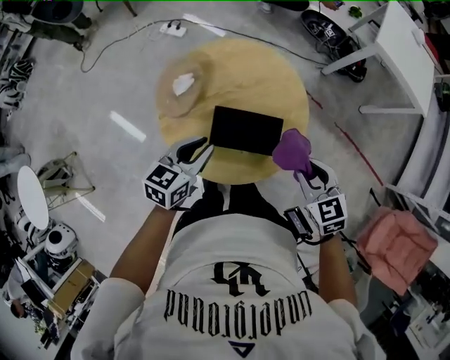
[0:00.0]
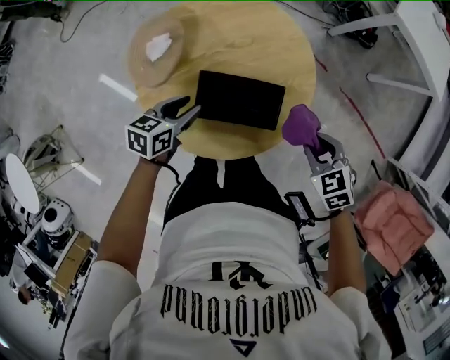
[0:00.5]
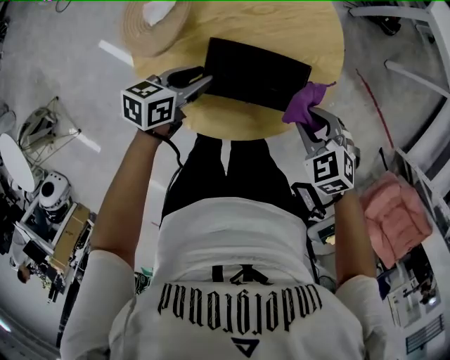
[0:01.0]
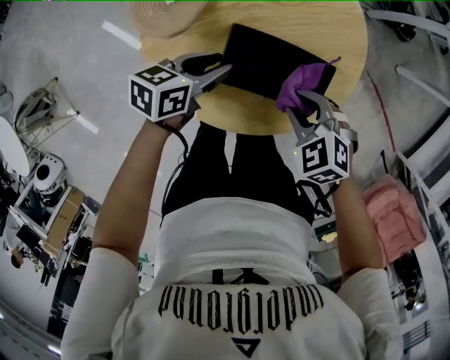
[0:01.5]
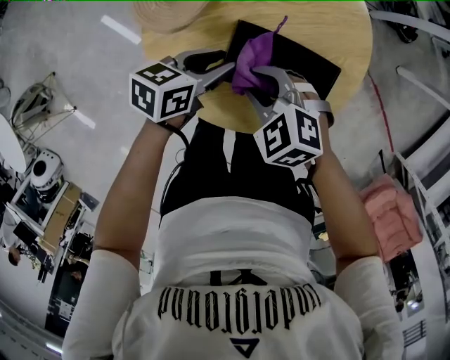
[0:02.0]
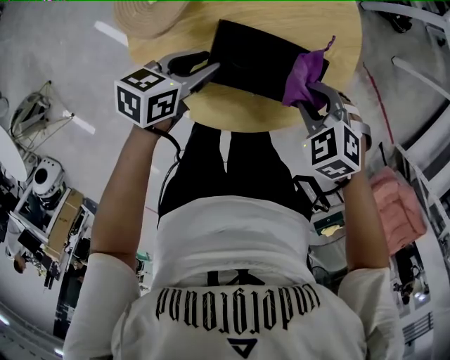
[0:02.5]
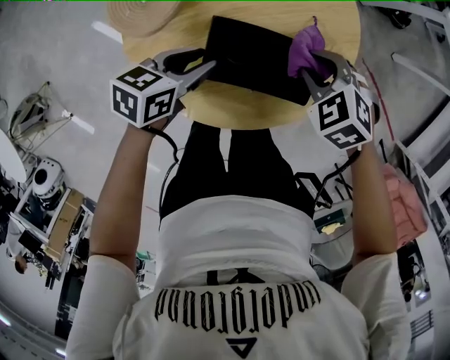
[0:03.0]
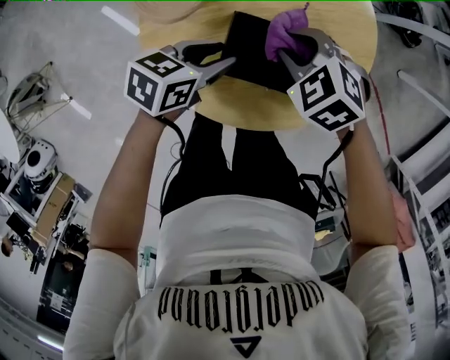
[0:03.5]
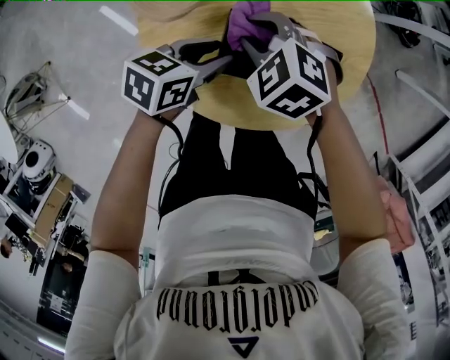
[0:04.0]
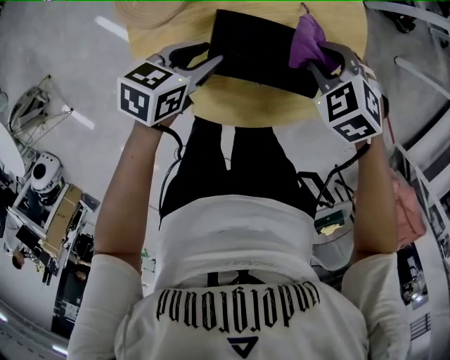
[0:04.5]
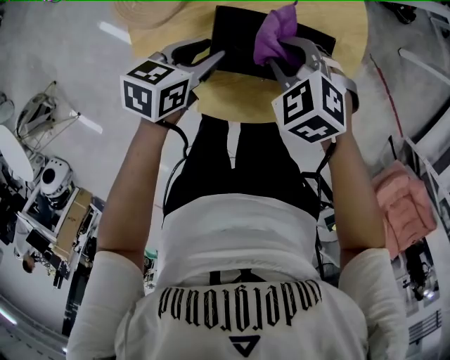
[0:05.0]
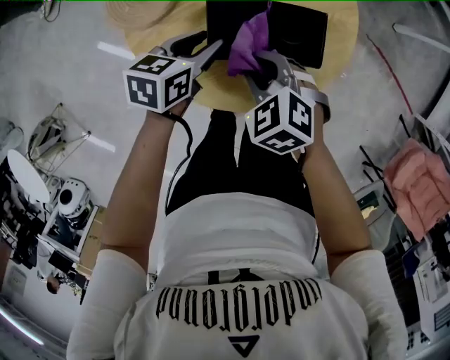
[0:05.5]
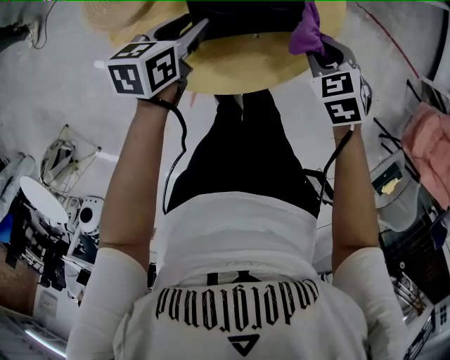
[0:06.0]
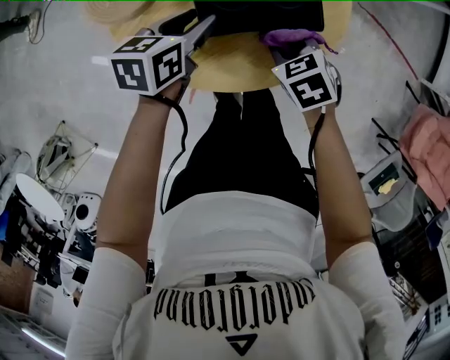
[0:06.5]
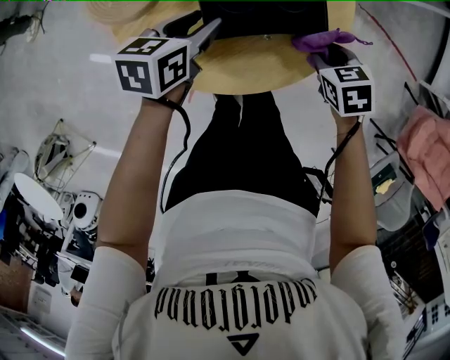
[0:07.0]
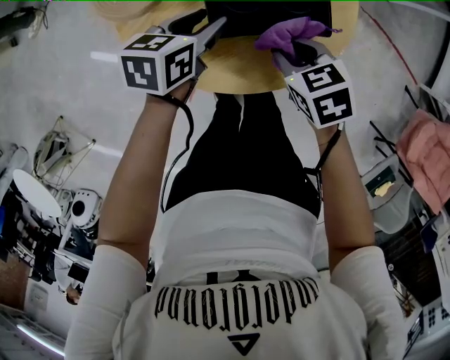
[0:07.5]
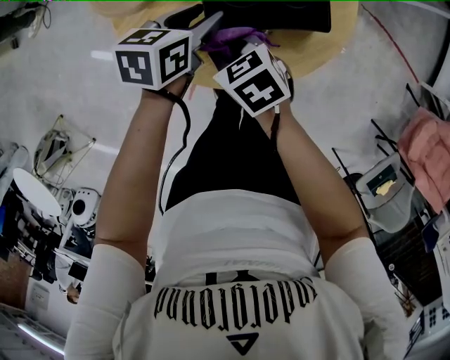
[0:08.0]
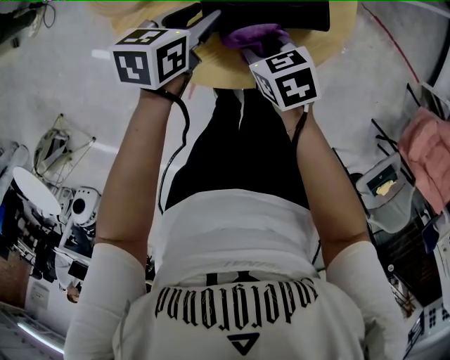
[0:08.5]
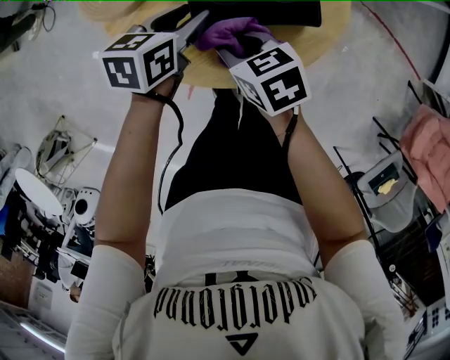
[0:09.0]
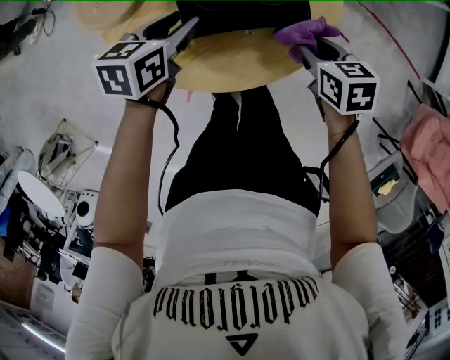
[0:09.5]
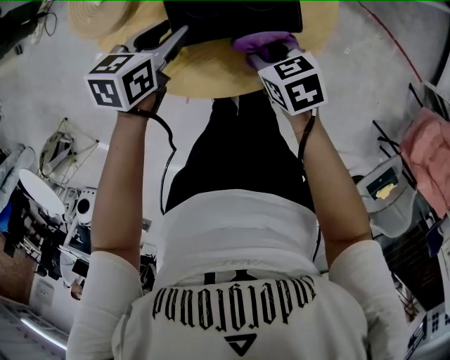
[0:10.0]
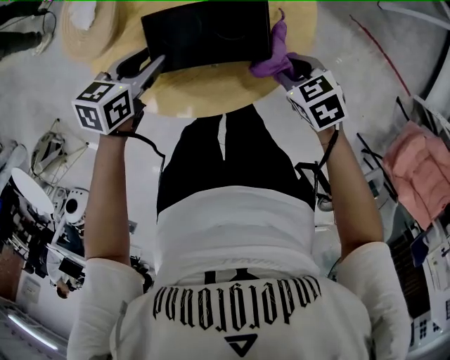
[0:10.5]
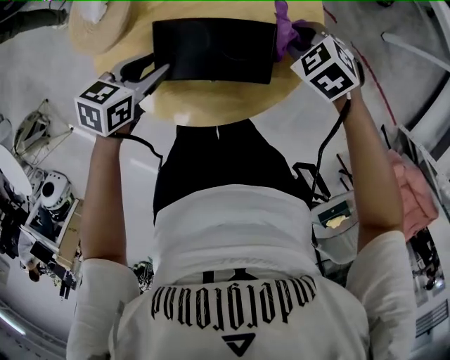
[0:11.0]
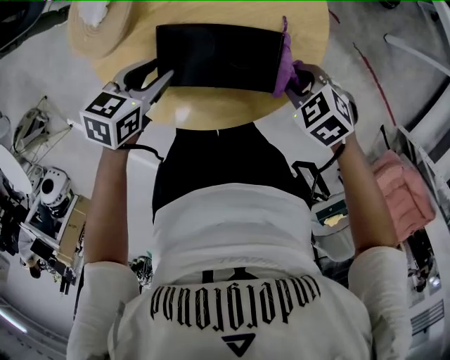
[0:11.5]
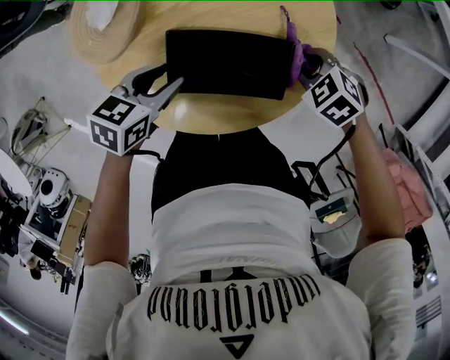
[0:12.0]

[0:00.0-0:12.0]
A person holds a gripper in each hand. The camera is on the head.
0:00.0 to 0:02.0: The left gripper heads downward, covering some 20 cm, and changes its angle by roughly 20 degrees. The right gripper moves some 30 cm, and swivels roughly 40 degrees.
0:04.0 to 0:06.0: The right gripper moves approximately 25 cm, and rolls clockwise, seen from behind, by roughly 40 degrees.
0:06.0 to 0:08.0: The right gripper swings left and right, approximately 25 cm each way, with 2 reversals, and rotates roughly 30 degrees.
0:08.0 to 0:10.0: The right gripper is displaced to the right by roughly 15 cm.
0:10.0 to 0:12.0: The right gripper ends up about 15 cm from where it was, and rotates around the line of its fingers by roughly 40 degrees, counterclockwise from behind.

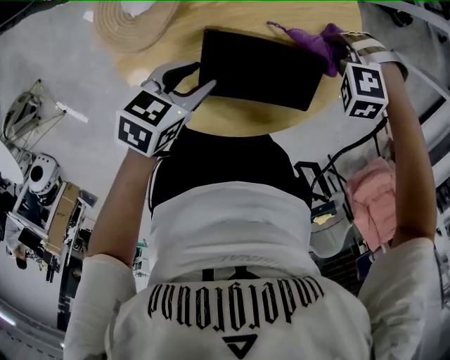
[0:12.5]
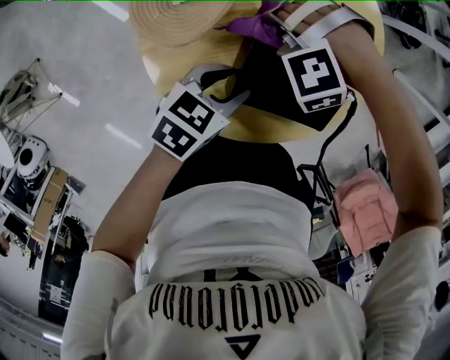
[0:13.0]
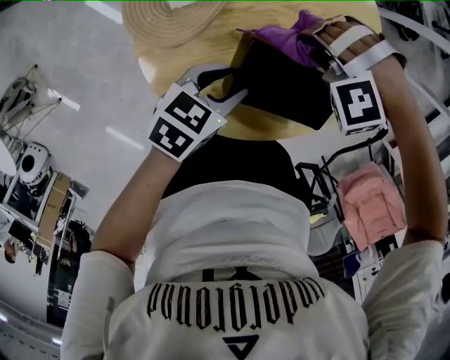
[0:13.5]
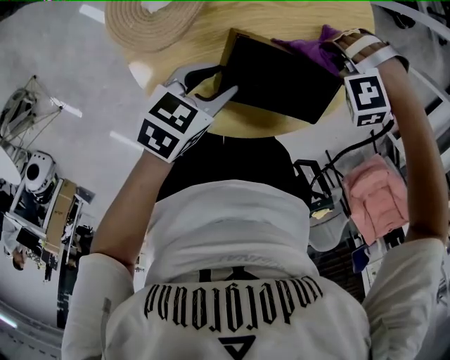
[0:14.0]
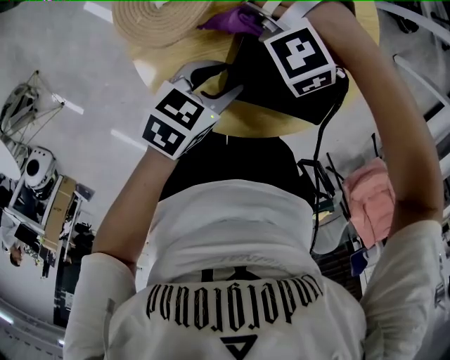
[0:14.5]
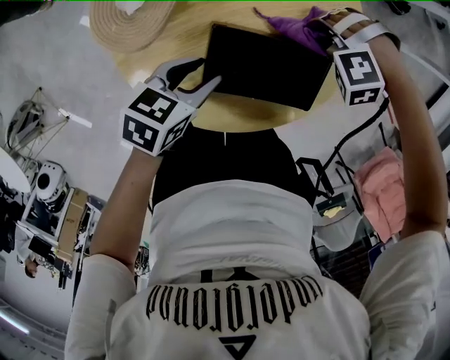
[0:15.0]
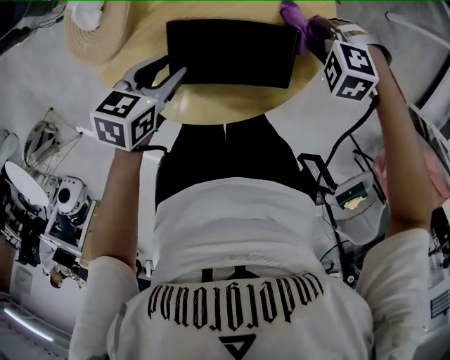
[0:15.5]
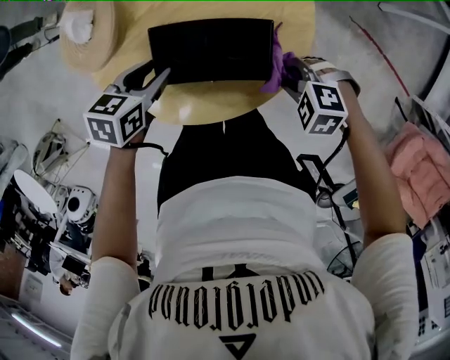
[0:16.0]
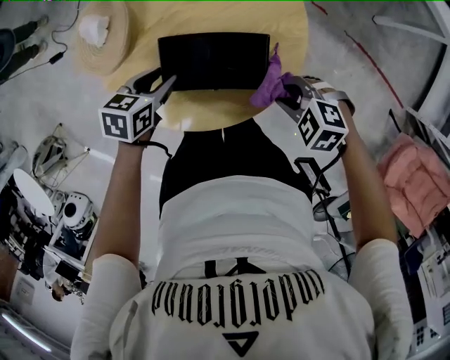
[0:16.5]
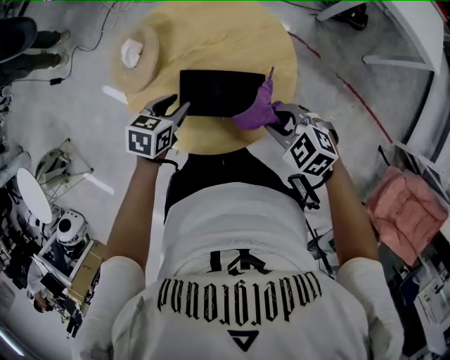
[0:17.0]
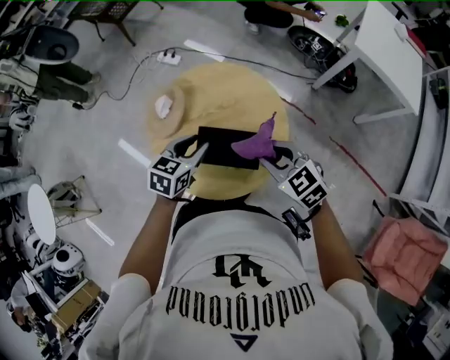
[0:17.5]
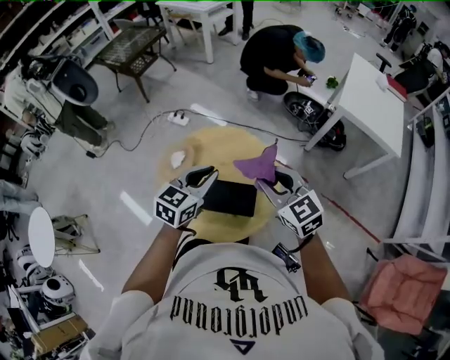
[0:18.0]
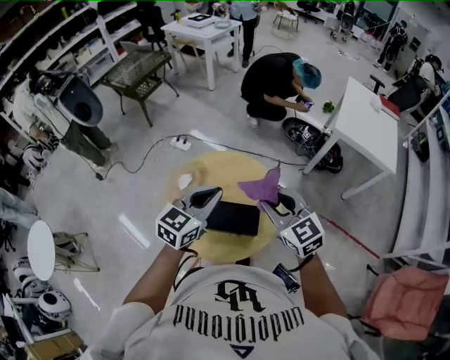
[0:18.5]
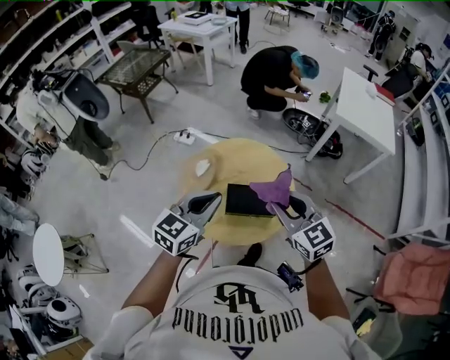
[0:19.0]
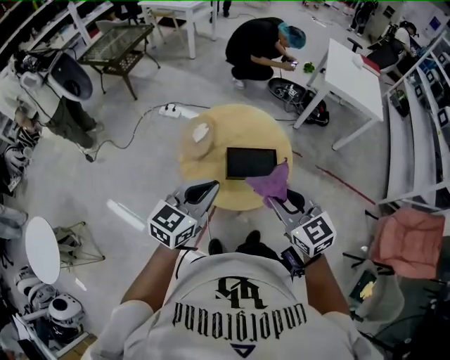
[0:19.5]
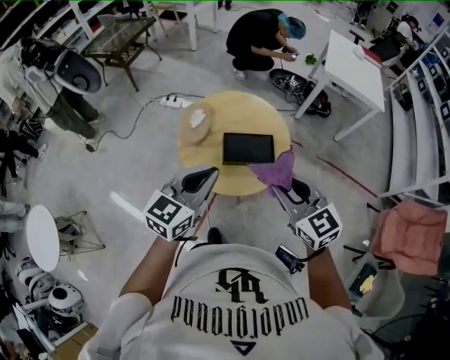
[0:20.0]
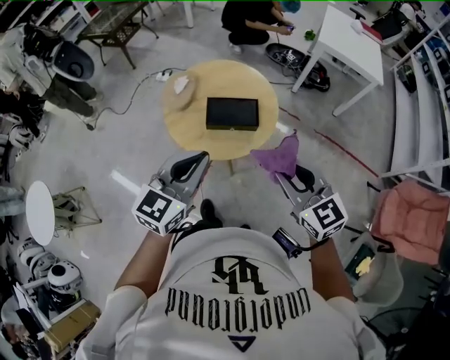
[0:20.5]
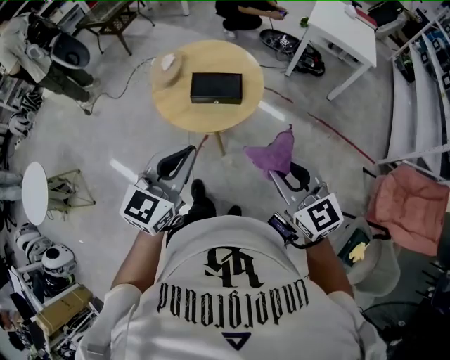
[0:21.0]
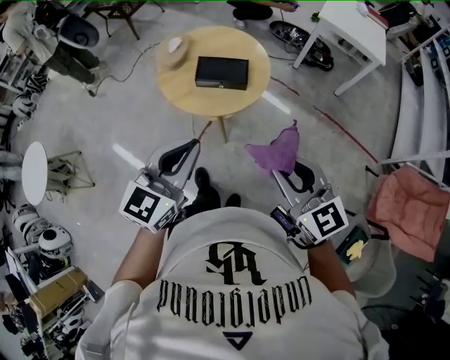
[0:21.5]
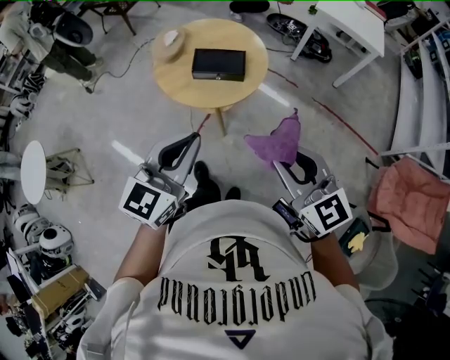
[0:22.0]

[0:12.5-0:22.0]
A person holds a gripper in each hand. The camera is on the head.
0:12.5 to 0:14.5: The right gripper moves approximately 20 cm, and changes its angle by about 30 degrees.
0:14.5 to 0:16.5: The left gripper moves roughly 5 cm, while the right gripper shifts by roughly 30 cm, and rotates around the line of its fingers by roughly 70 degrees, clockwise from behind.
0:16.5 to 0:18.0: The two grippers go about 35 cm upward. The right gripper points its fingers about 40 degrees further upward; the left gripper points its fingers roughly 30 degrees further upward, and closes.
0:18.0 to 0:20.0: The left gripper travels backward and to the left by roughly 30 cm; the right gripper is displaced backward by about 30 cm.
0:20.0 to 0:22.0: The two grippers go some 30 cm backward and to the right.

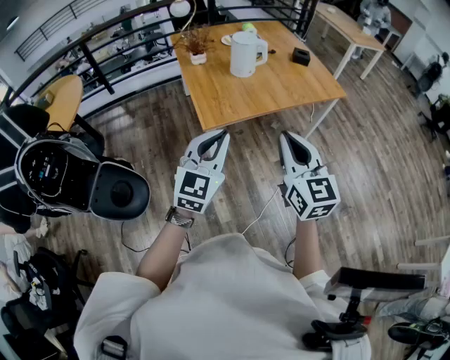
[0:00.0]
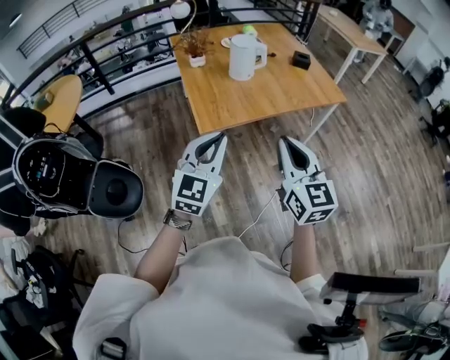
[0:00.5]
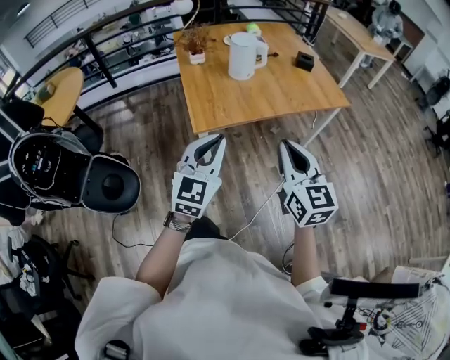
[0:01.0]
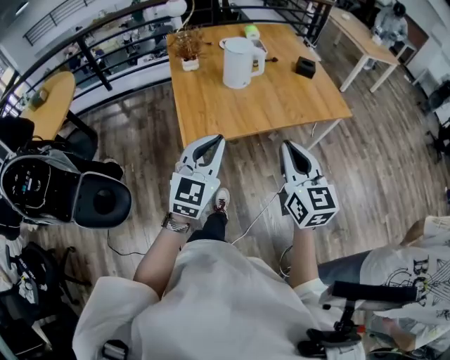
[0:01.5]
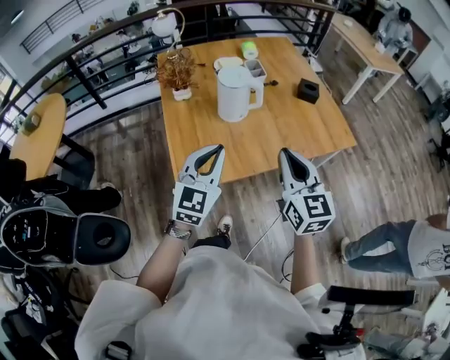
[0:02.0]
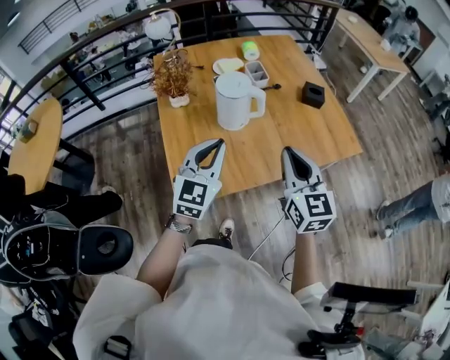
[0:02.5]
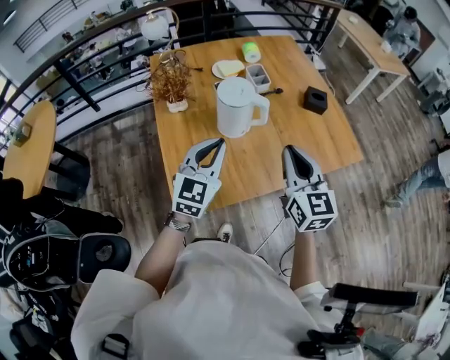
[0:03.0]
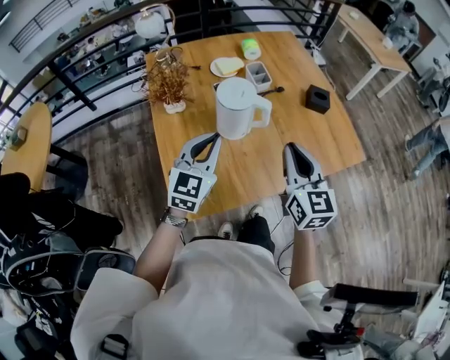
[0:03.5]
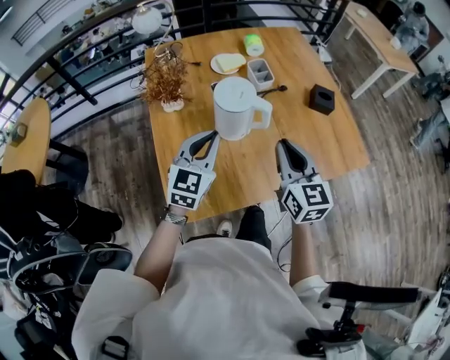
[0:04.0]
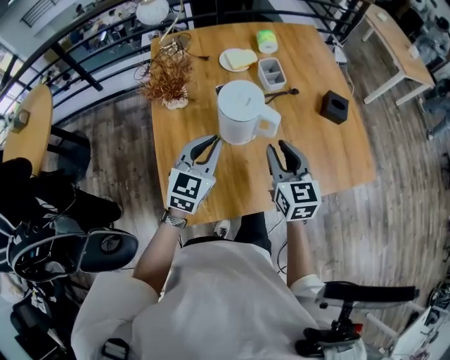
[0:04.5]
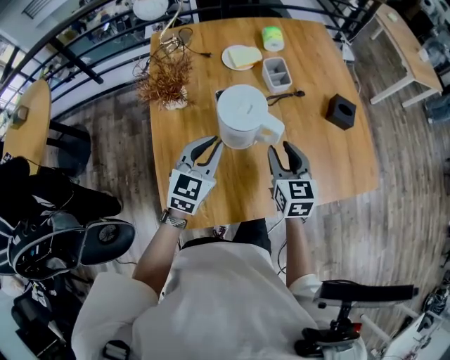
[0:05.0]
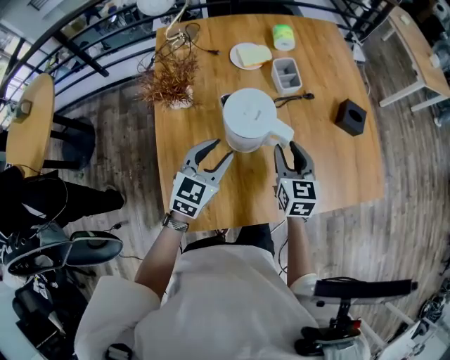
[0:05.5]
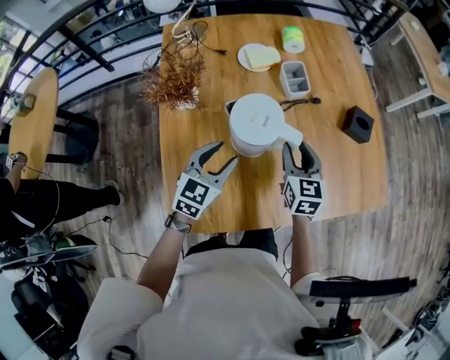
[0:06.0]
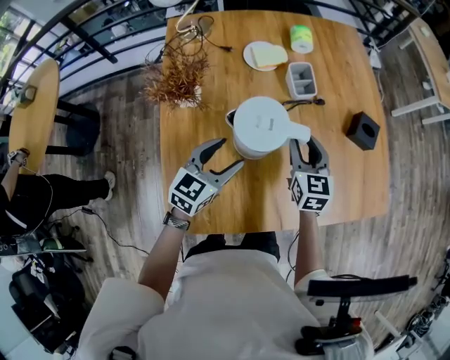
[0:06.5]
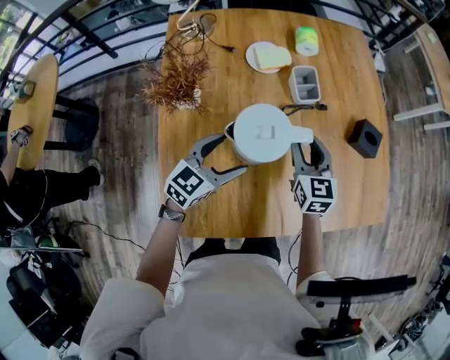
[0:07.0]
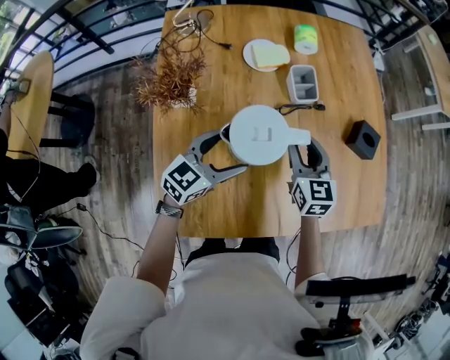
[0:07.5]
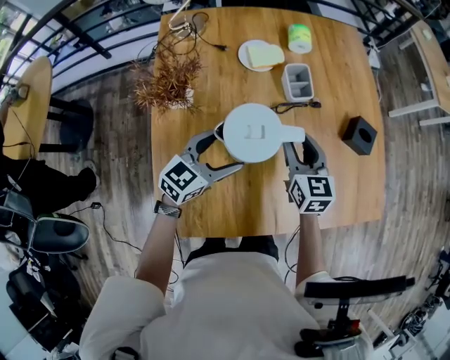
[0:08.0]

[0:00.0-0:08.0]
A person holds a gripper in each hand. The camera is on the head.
0:00.0 to 0:02.0: The grippers both shift forward by roughly 30 cm.
0:02.0 to 0:04.0: The grippers both shift forward by approximately 20 cm.
0:04.0 to 0:06.0: The right gripper goes roughly 20 cm forward and downward, and opens. The left gripper moves downward and forward, roughly 15 cm, and opens its fingers.
0:06.0 to 0:08.0: The left gripper changes place by about 5 cm, and opens, while the right gripper is displaced forward by some 5 cm.
